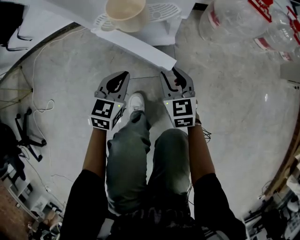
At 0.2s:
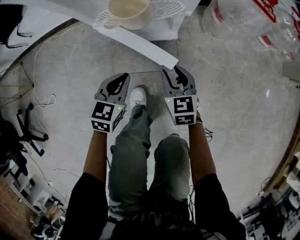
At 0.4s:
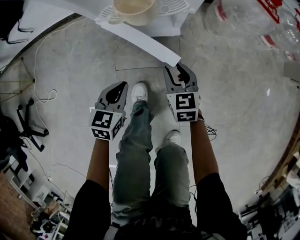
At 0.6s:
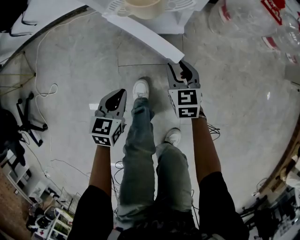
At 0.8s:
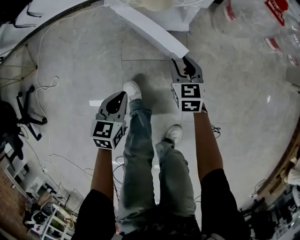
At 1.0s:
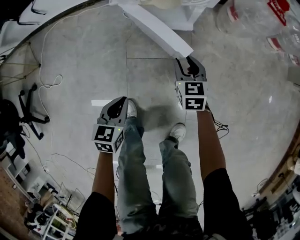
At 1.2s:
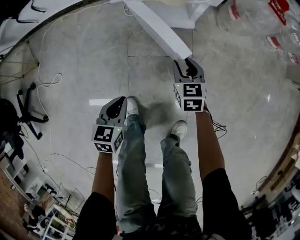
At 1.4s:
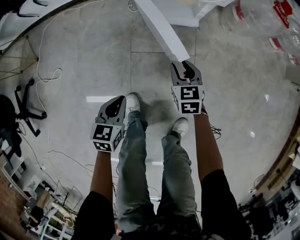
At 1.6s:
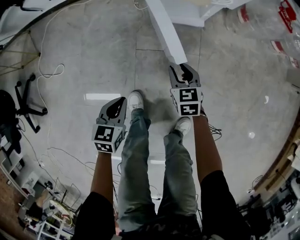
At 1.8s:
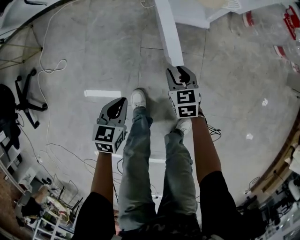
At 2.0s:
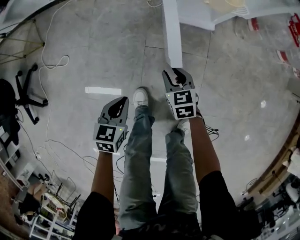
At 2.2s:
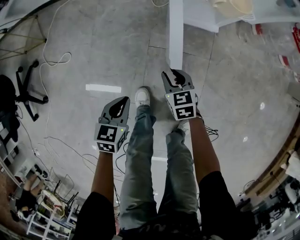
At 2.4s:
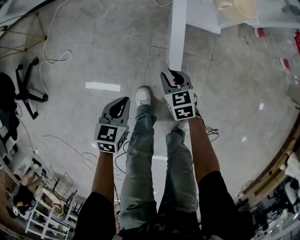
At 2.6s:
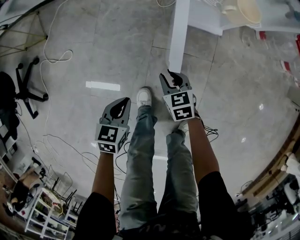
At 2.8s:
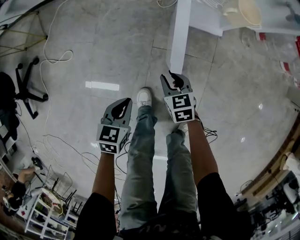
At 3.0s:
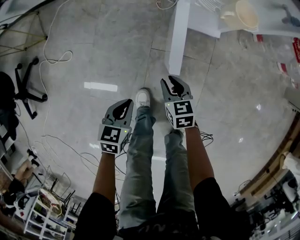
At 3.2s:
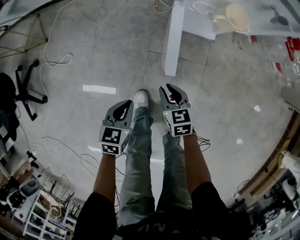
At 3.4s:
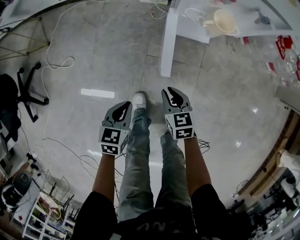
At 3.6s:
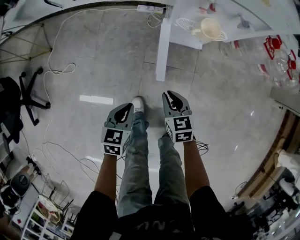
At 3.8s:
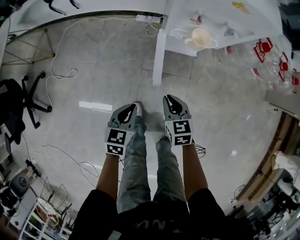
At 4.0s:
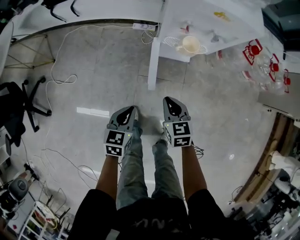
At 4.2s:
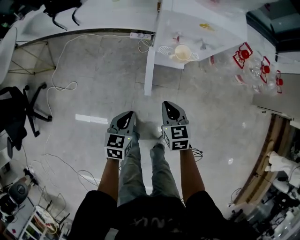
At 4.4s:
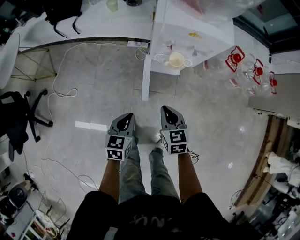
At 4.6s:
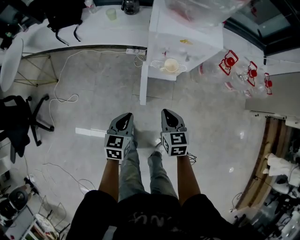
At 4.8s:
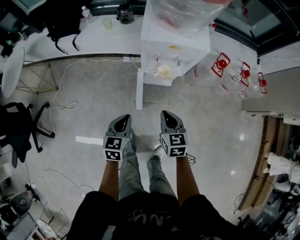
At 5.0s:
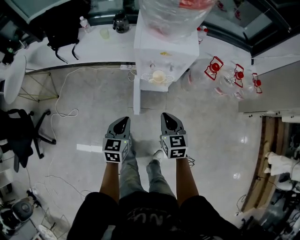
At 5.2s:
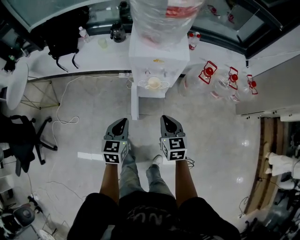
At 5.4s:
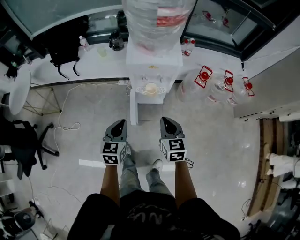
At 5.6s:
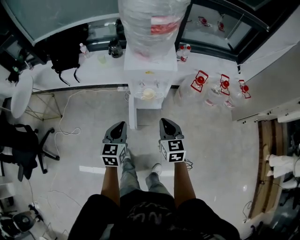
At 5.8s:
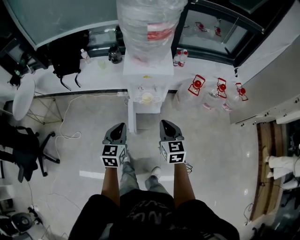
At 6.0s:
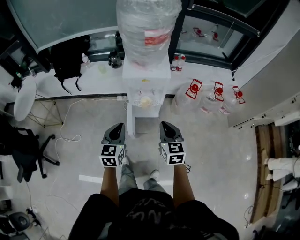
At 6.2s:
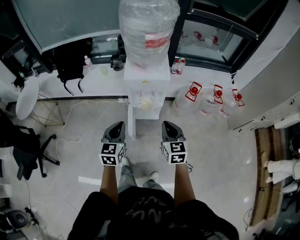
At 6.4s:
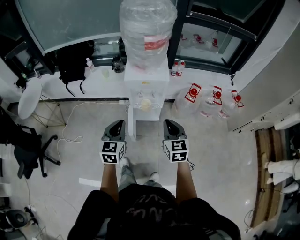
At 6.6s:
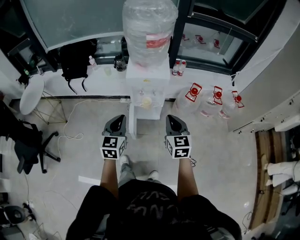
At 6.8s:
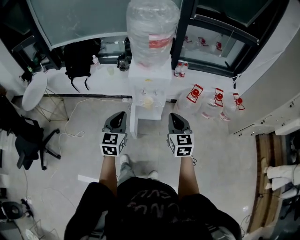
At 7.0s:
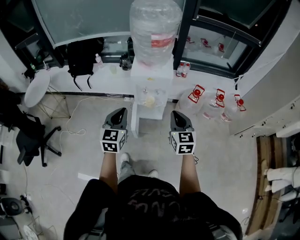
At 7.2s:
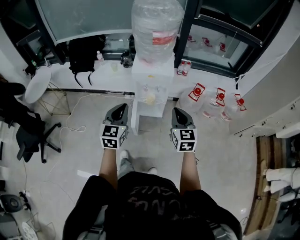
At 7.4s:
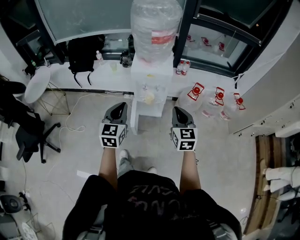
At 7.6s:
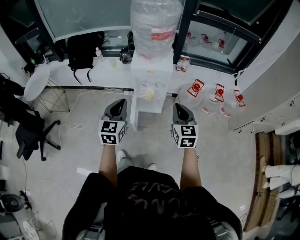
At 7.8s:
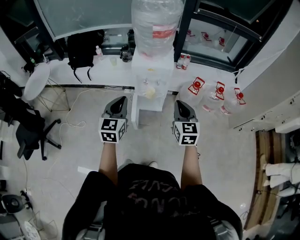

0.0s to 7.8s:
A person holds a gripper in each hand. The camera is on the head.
0.0s to 1.6s: The right gripper moves to the left and backward, roughly 15 cm. The left gripper moves backward and to the left, roughly 30 cm, and changes its angle by roughly 20 degrees.
1.6s to 3.2s: The left gripper shifts by about 5 cm. The right gripper travels to the left and upward by about 15 cm.
3.2s to 4.6s: The two grippers go some 30 cm upward.
4.6s to 6.2s: The left gripper moves upward, about 25 cm, and rotates roughly 20 degrees, while the right gripper heads upward and to the right, covering approximately 30 cm.
6.2s to 7.8s: The grippers both shift upward by about 10 cm.

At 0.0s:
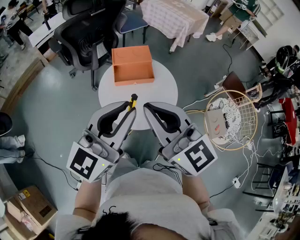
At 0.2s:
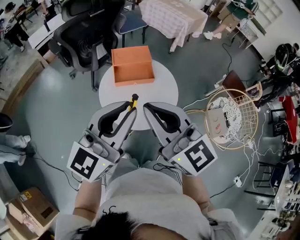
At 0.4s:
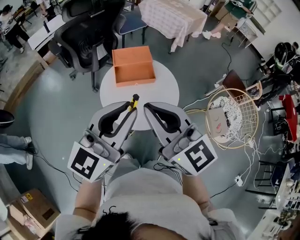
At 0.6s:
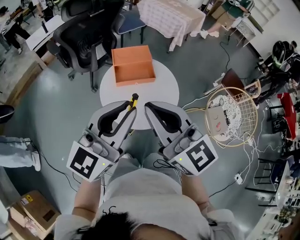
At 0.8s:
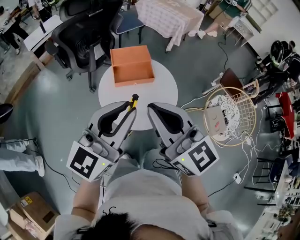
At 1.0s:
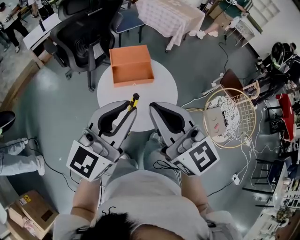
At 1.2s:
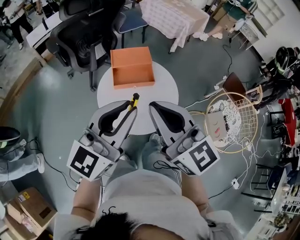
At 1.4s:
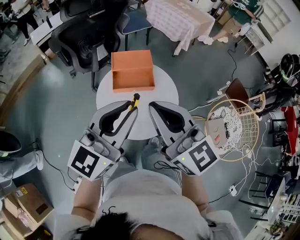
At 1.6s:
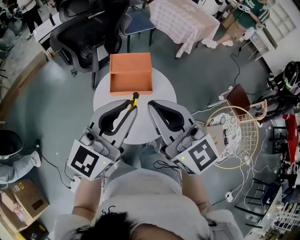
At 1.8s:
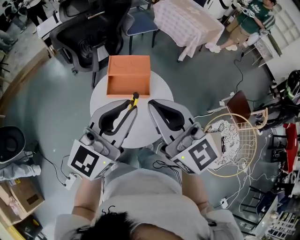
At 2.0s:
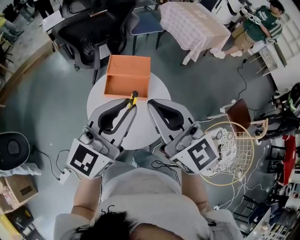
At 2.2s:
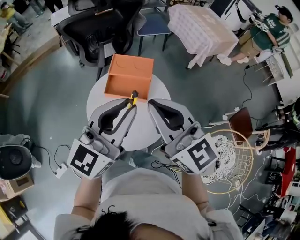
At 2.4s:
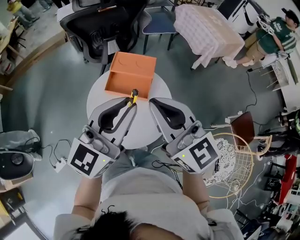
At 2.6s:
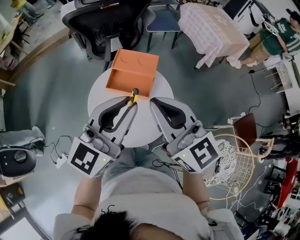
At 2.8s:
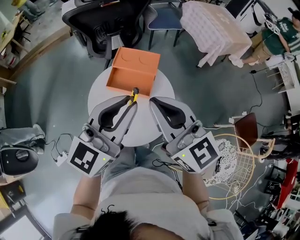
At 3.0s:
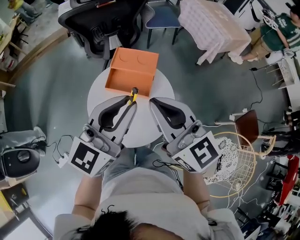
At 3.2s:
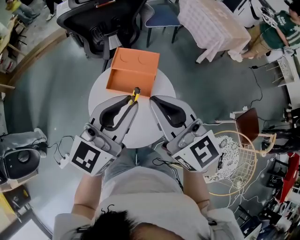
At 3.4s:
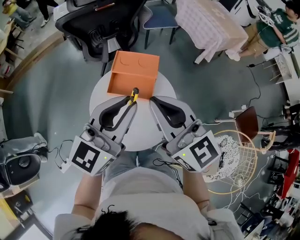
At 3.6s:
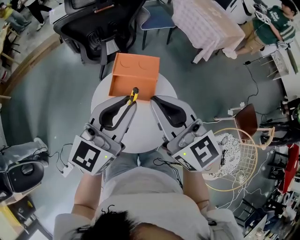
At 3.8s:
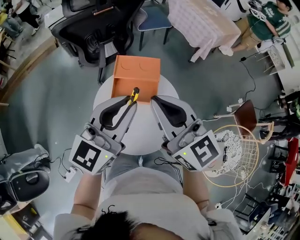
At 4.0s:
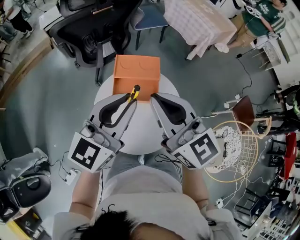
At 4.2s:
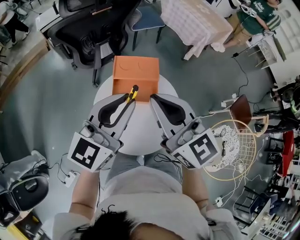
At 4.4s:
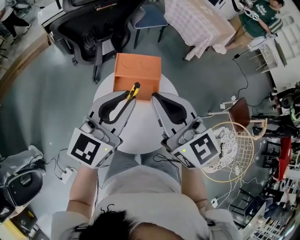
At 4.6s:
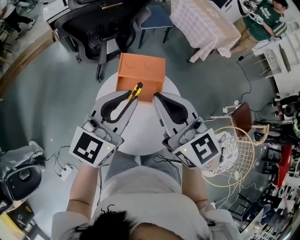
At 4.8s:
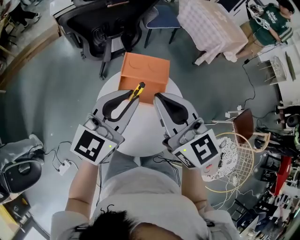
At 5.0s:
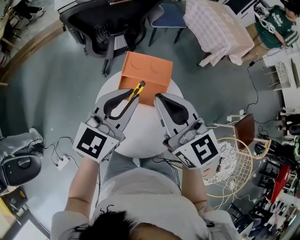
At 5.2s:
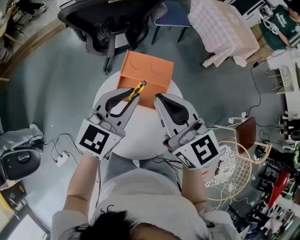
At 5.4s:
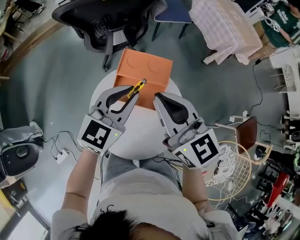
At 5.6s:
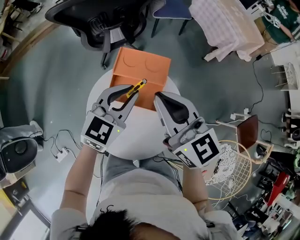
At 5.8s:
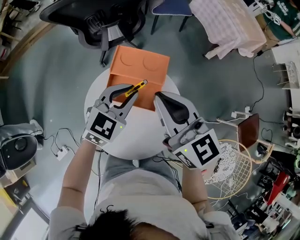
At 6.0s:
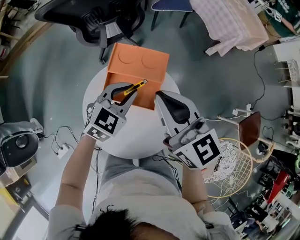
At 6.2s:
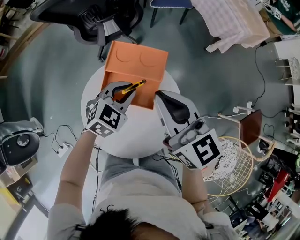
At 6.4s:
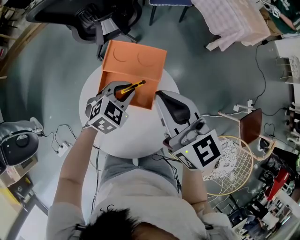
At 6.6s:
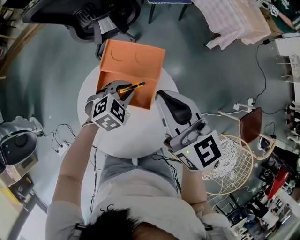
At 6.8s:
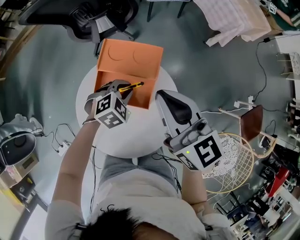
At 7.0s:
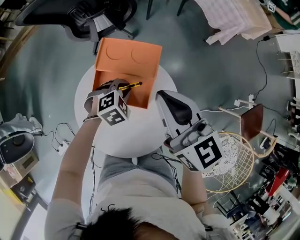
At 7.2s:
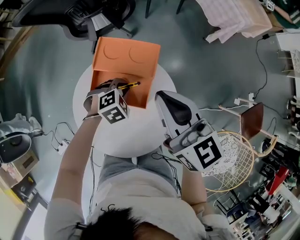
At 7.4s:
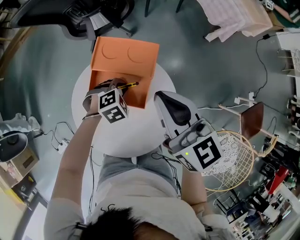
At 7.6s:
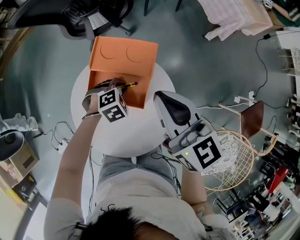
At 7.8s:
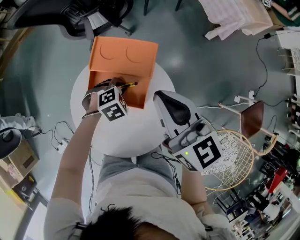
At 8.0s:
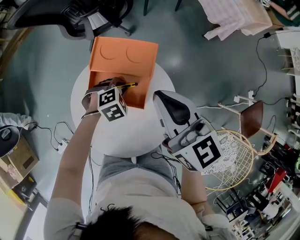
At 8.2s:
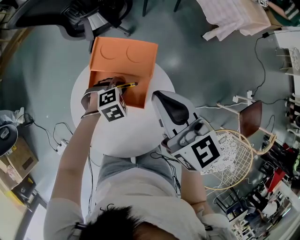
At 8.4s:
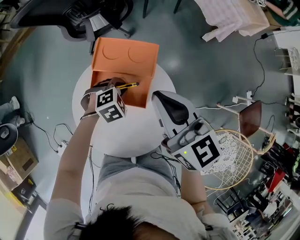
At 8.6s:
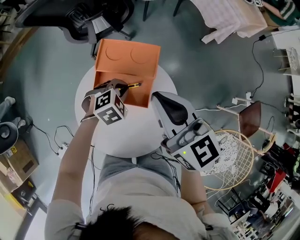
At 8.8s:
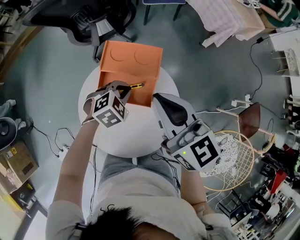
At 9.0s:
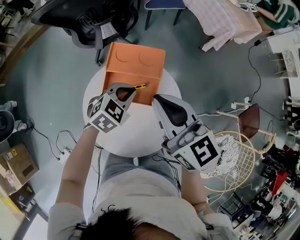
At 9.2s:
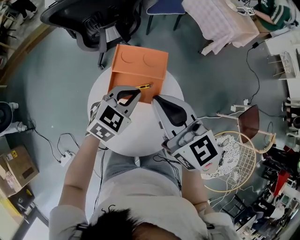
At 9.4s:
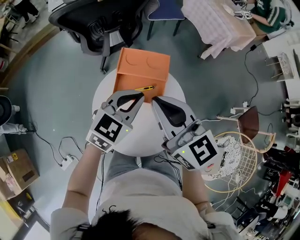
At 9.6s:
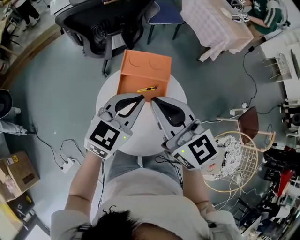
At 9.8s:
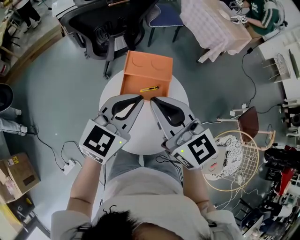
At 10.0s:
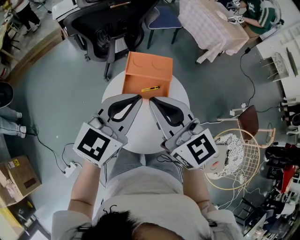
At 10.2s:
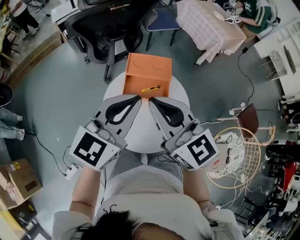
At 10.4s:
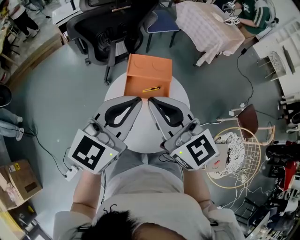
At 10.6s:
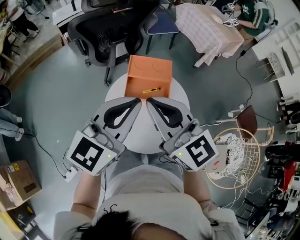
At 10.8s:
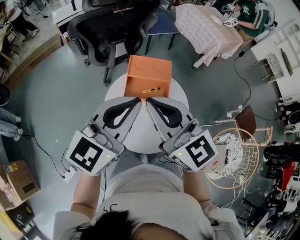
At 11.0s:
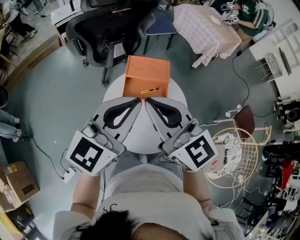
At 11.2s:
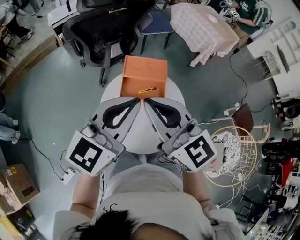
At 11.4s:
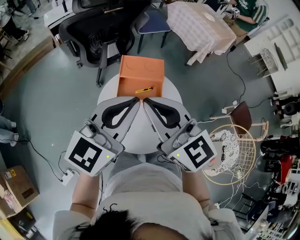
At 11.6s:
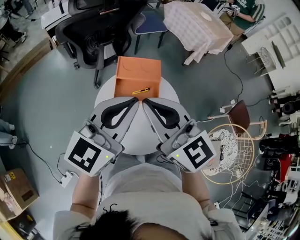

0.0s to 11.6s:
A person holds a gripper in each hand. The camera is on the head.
0.0s to 1.4s: The grippers both shift forward by about 5 cm.
1.4s to 2.8s: Both grippers travel together to the right and forward, some 15 cm. The left gripper turns by roughly 20 degrees.
2.8s to 4.4s: Both grippers move to the left and forward, about 10 cm.
4.4s to 5.8s: The right gripper shifts some 15 cm forward, downward and to the right. Meanwhile the left gripper heads downward, forward and to the right, covering approximately 20 cm, and tips its fingers downward by about 30 degrees.
5.8s to 7.2s: The left gripper travels downward by roughly 20 cm, and tilts its fingers about 40 degrees downward; the right gripper shifts roughly 5 cm to the right.
7.2s to 8.8s: The left gripper moves upward, about 5 cm.
8.8s to 10.2s: The left gripper travels upward and backward by approximately 35 cm, and angles its fingers upward, by some 50 degrees. The right gripper goes roughly 15 cm backward, to the left and upward.
10.2s to 11.6s: The grippers make only small movements.

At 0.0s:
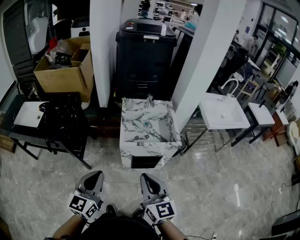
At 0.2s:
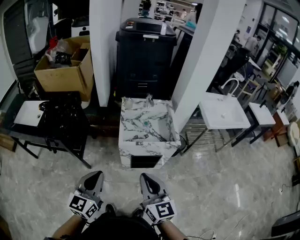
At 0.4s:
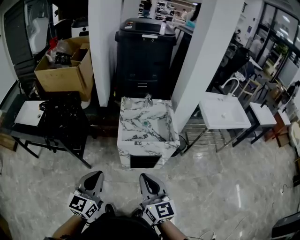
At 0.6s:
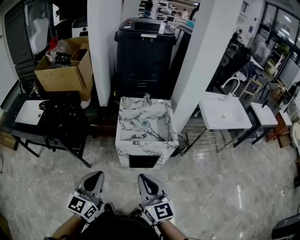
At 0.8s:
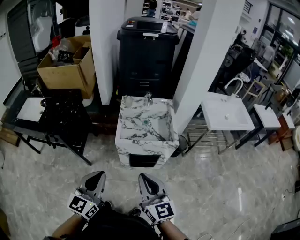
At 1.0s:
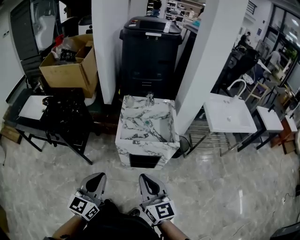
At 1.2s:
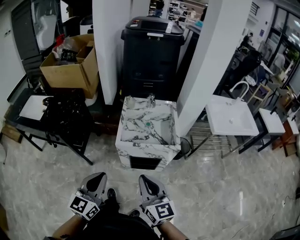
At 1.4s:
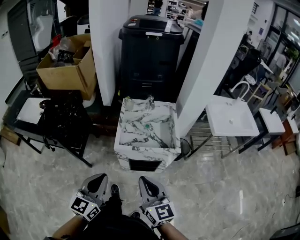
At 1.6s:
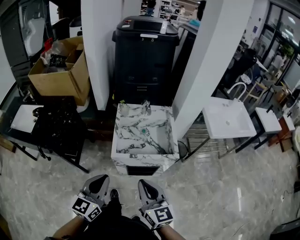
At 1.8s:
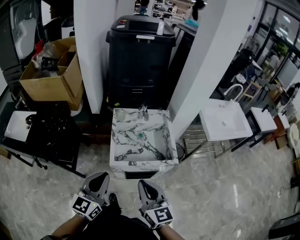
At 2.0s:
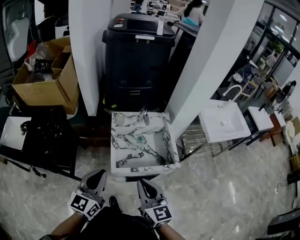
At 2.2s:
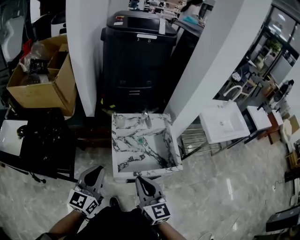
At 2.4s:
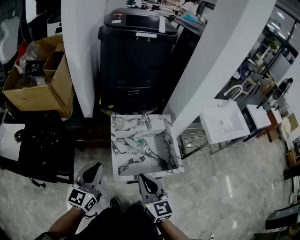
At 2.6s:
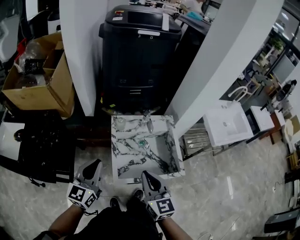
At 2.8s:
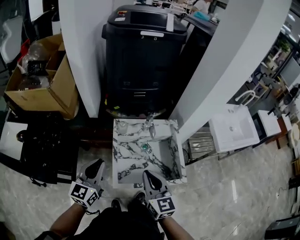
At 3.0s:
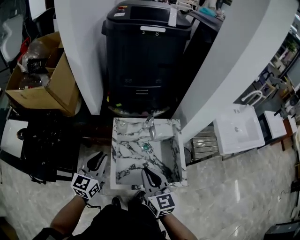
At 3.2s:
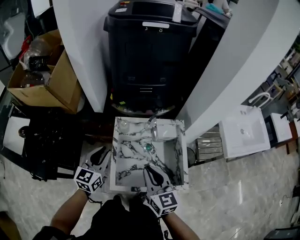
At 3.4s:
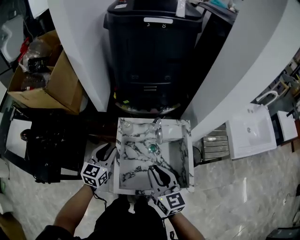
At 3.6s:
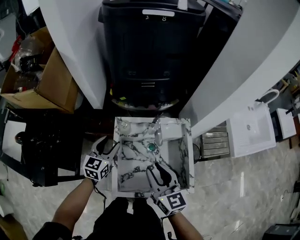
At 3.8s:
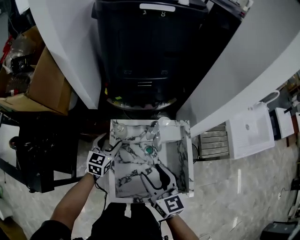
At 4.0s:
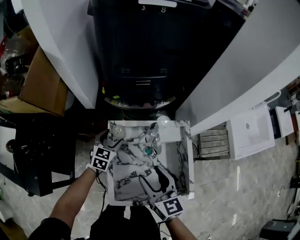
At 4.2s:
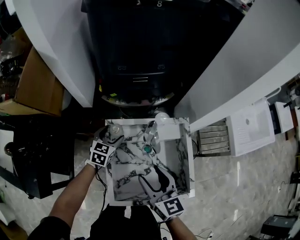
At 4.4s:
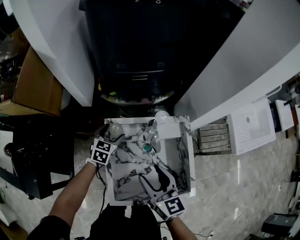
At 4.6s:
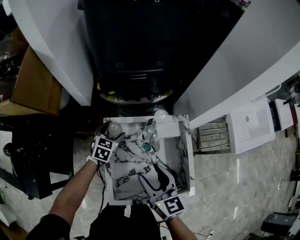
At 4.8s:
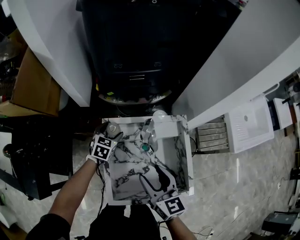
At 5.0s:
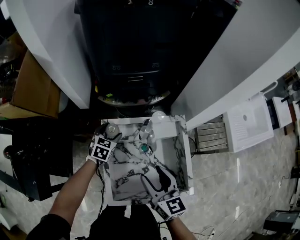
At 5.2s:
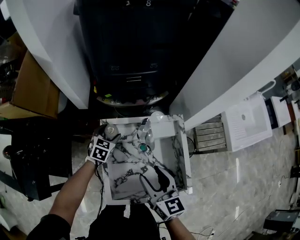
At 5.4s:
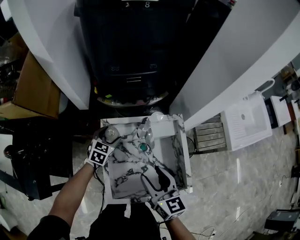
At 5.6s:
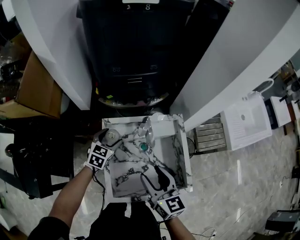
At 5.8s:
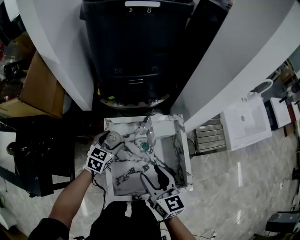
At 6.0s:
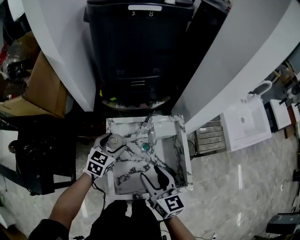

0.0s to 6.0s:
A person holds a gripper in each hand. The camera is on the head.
0.0s to 1.6s: The left gripper shifts approximately 15 cm to the right and forward, while the right gripper is displaced forward and to the right by about 10 cm.
1.6s to 3.0s: Both grippers move forward, about 30 cm.
3.0s to 4.4s: The left gripper heads forward and downward, covering about 30 cm, changes its angle by roughly 30 degrees, and opens up. The right gripper goes roughly 15 cm forward and downward, and opens.
4.4s to 6.0s: The right gripper changes place by some 5 cm. Meanwhile the left gripper goes about 15 cm upward and backward.
